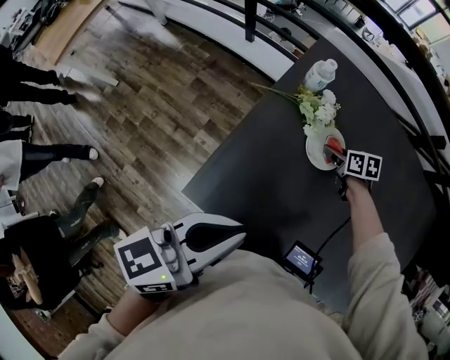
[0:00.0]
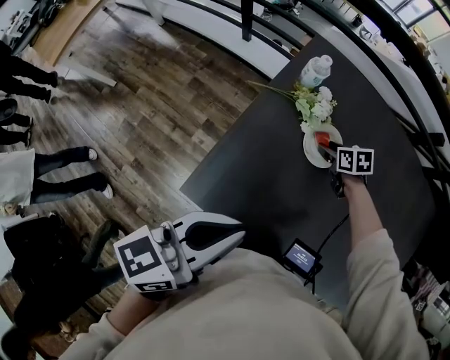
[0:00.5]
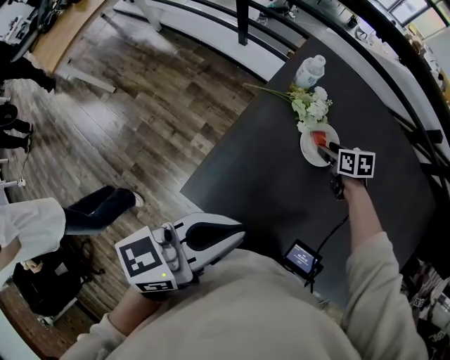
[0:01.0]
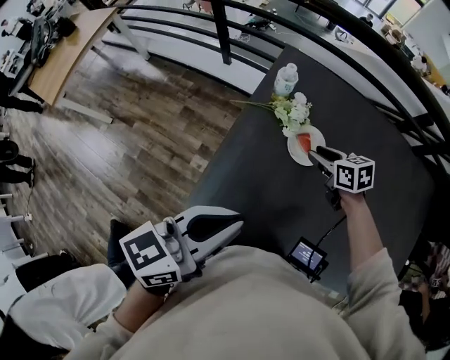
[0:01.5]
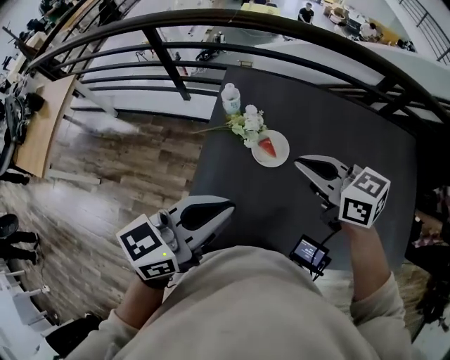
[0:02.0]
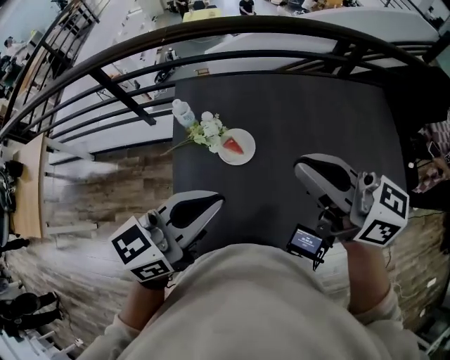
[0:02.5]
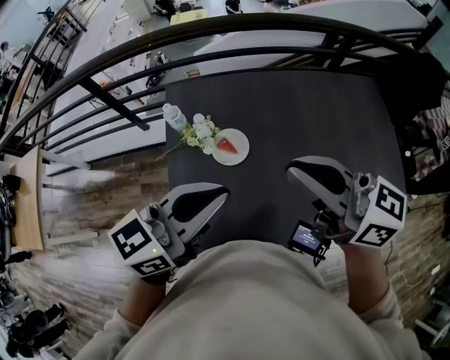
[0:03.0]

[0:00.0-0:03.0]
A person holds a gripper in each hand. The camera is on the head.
0:00.0 to 0:01.5: The right gripper is displaced upward by about 10 cm.
0:01.5 to 0:03.0: The right gripper moves upward, approximately 35 cm, points its fingers about 50 degrees further upward, and closes, while the left gripper shifts by some 15 cm, and rotates about 30 degrees.

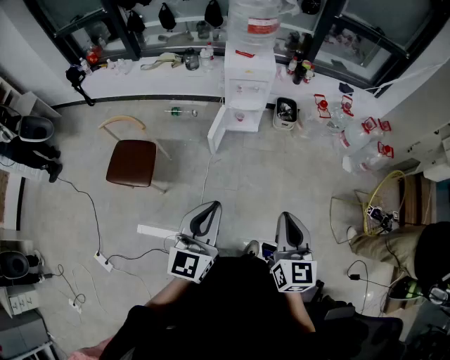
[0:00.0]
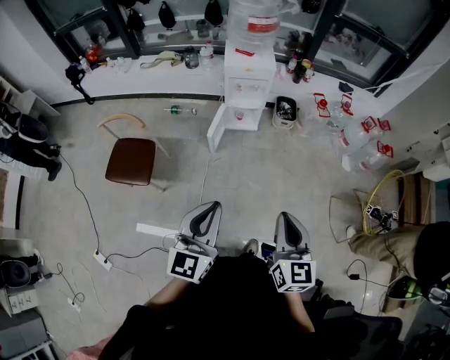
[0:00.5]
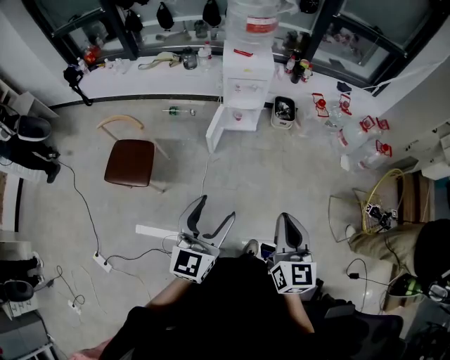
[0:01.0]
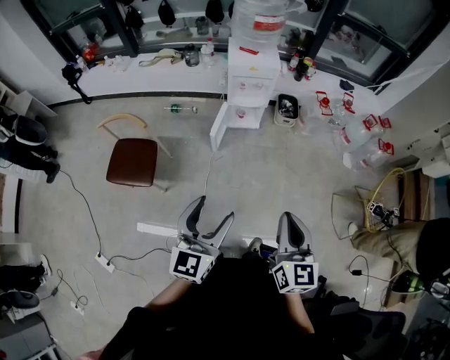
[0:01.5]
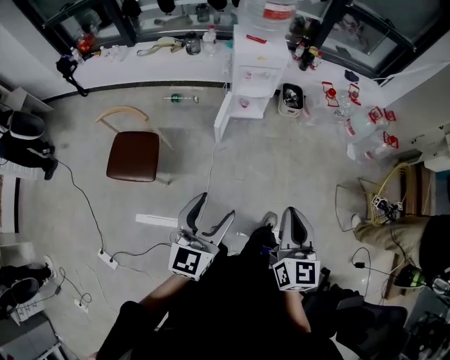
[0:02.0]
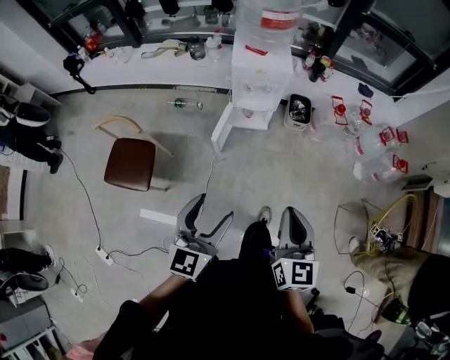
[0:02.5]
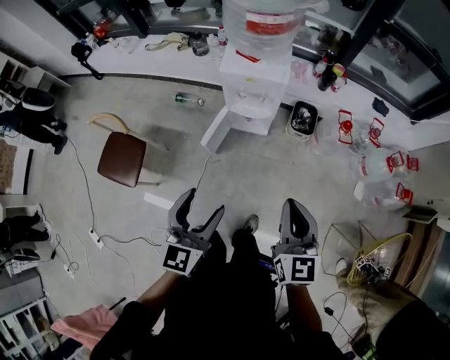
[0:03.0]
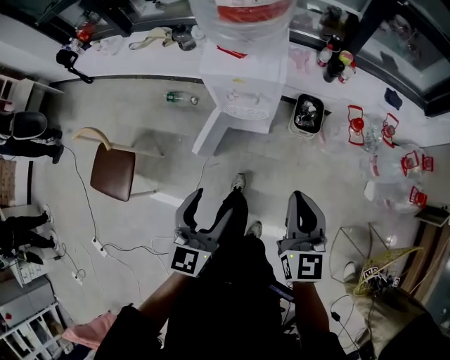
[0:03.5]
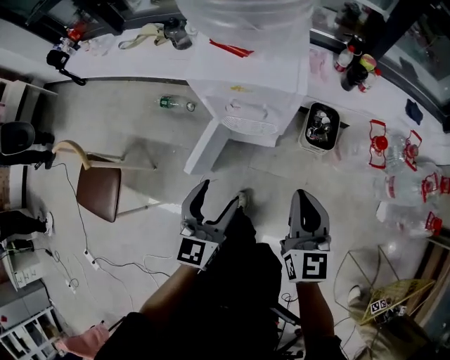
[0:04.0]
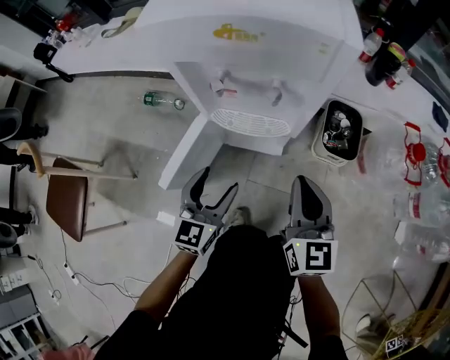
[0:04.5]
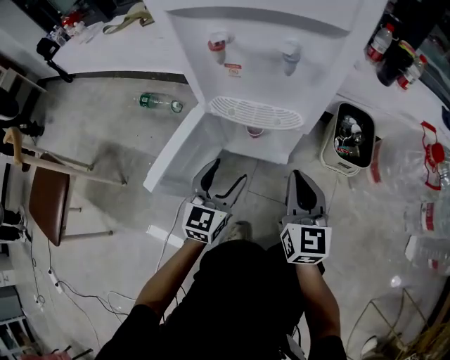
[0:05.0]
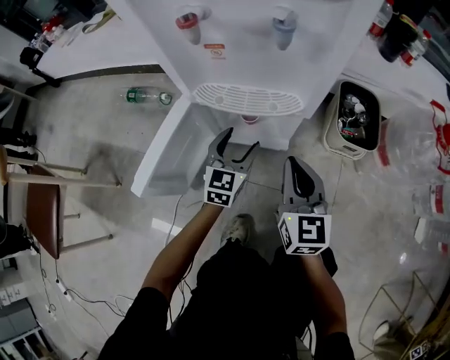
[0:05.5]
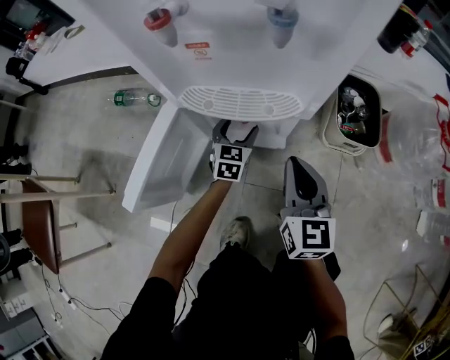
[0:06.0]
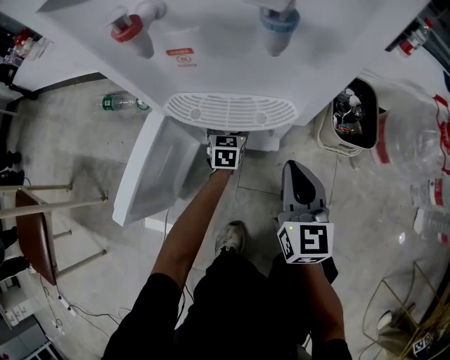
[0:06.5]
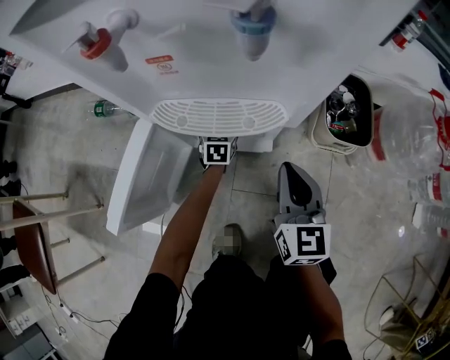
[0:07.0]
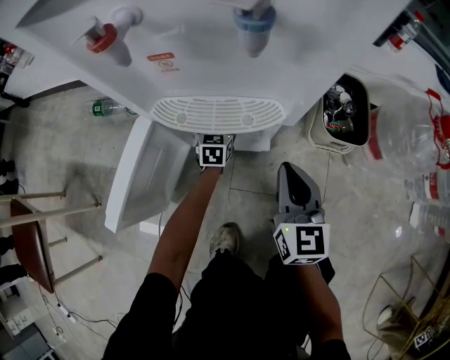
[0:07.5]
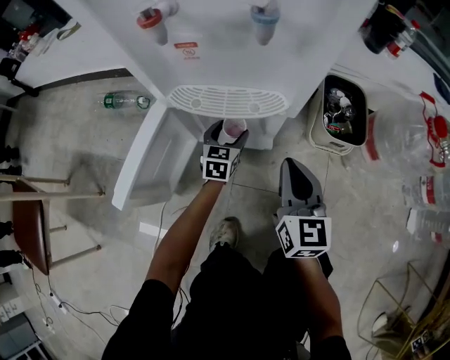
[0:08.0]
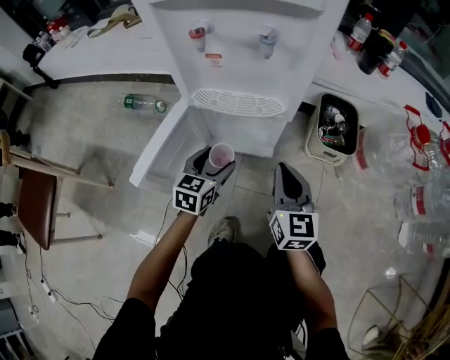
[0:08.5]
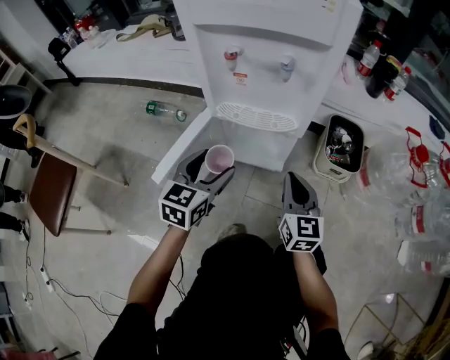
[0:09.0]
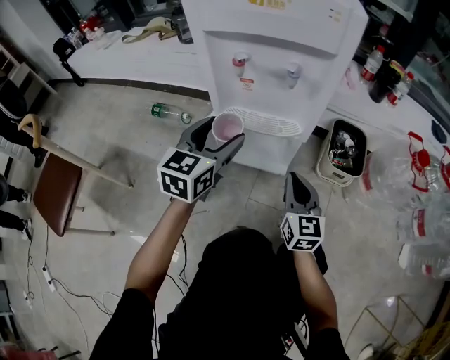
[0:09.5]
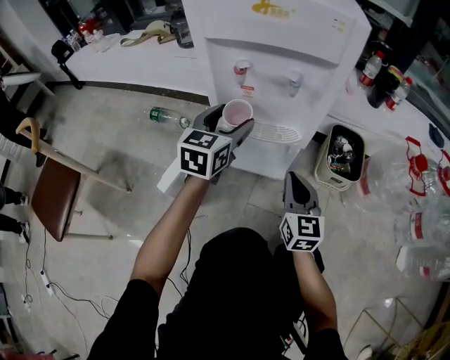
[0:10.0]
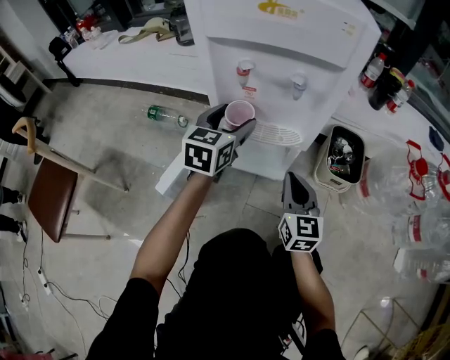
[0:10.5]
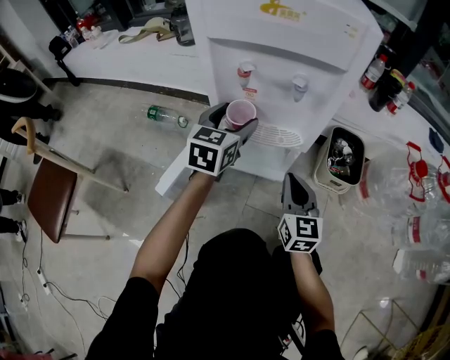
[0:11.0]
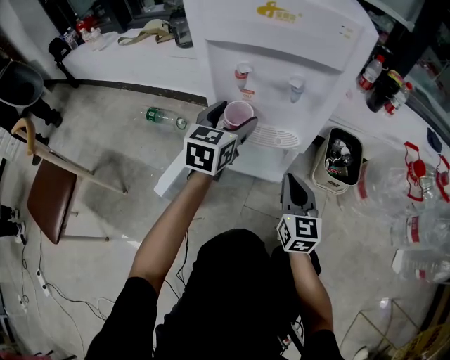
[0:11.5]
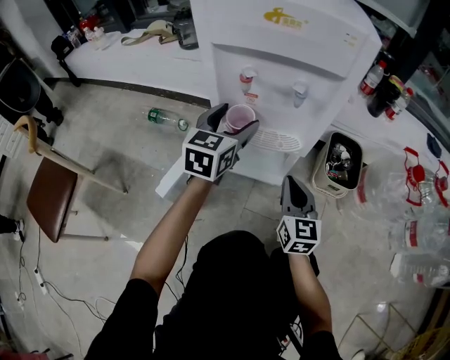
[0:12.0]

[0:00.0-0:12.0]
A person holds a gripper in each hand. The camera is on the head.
0:00.0 to 0:02.0: The left gripper heads to the left and downward, covering about 10 cm, and opens its fingers. Meanwhile the right gripper moves to the left, some 10 cm.
0:02.0 to 0:04.0: The two grippers travel together, forward, approximately 60 cm. The grippers both shift downward by approximately 30 cm.
0:04.0 to 0:06.0: The left gripper heads downward and forward, covering about 70 cm. The right gripper shifts roughly 50 cm downward.
0:06.0 to 0:08.0: The left gripper moves roughly 10 cm downward and comes back.
0:08.0 to 0:10.0: The right gripper goes roughly 5 cm upward; the left gripper is displaced upward by approximately 35 cm.
0:10.0 to 0:12.0: The grippers stay close to where they were, moving slightly.

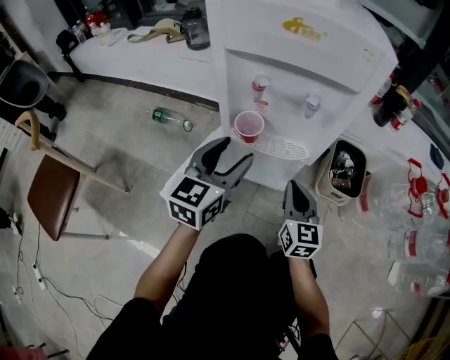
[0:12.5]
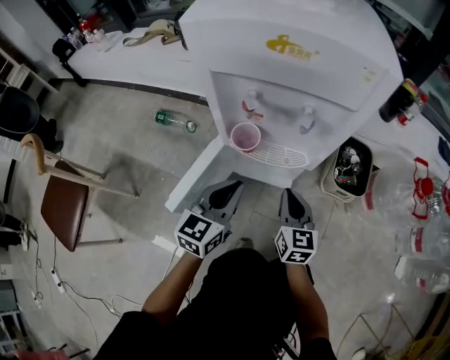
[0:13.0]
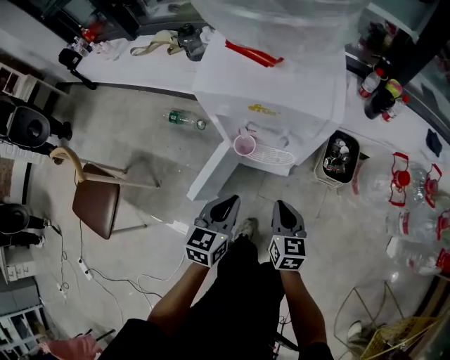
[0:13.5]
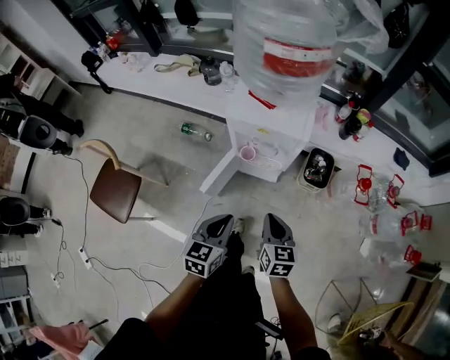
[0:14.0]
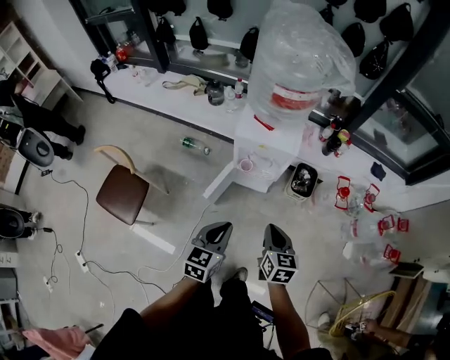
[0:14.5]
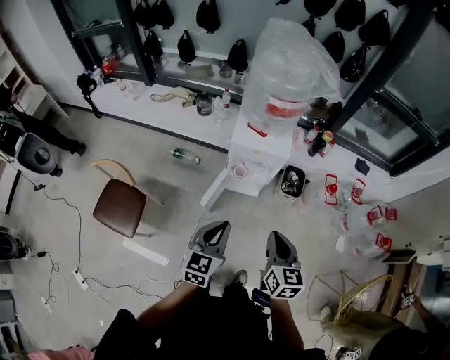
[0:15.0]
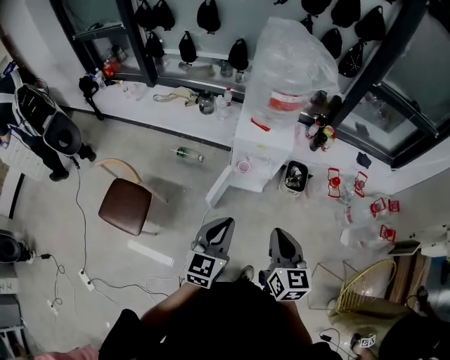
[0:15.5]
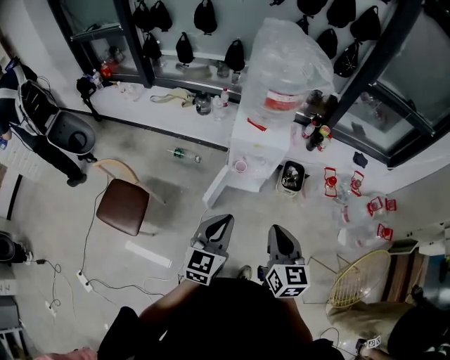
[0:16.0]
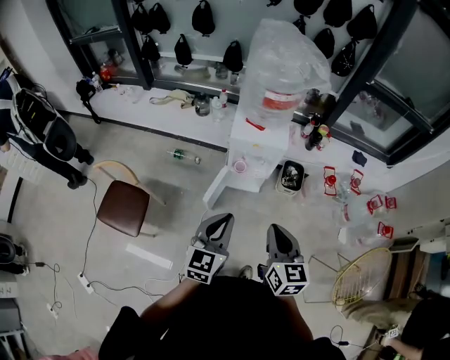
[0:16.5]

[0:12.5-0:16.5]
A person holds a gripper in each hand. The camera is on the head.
0:12.5 to 0:14.5: The two grippers go approximately 60 cm upward and backward. The right gripper swivels about 20 degrees, while the left gripper closes.
0:14.5 to 0:16.5: The left gripper moves upward, roughly 15 cm. The right gripper goes about 20 cm upward and backward.

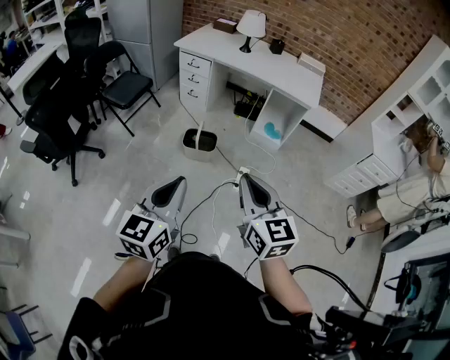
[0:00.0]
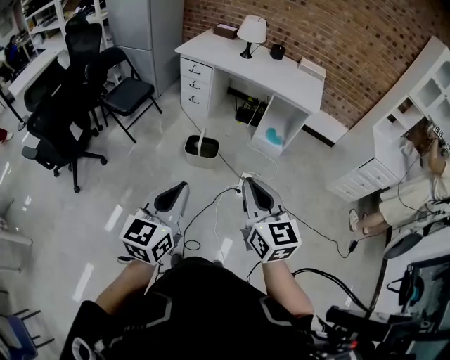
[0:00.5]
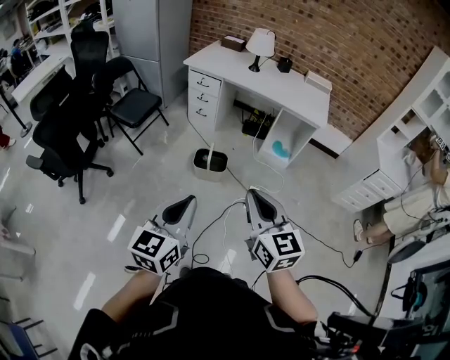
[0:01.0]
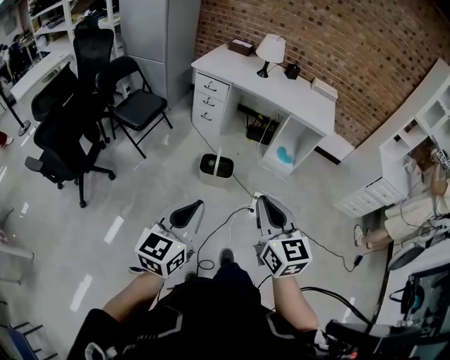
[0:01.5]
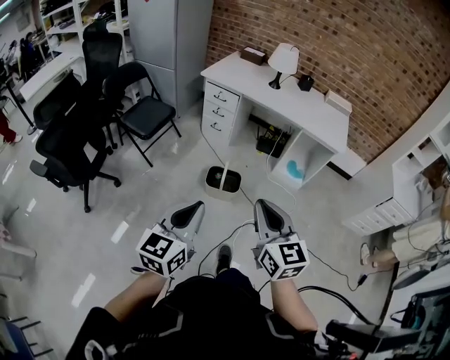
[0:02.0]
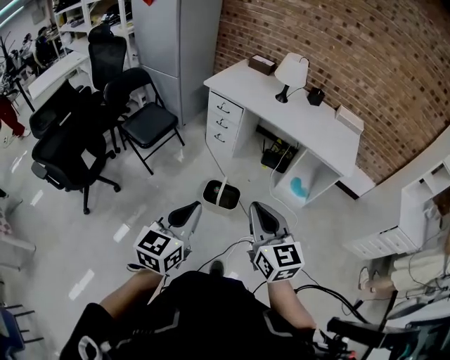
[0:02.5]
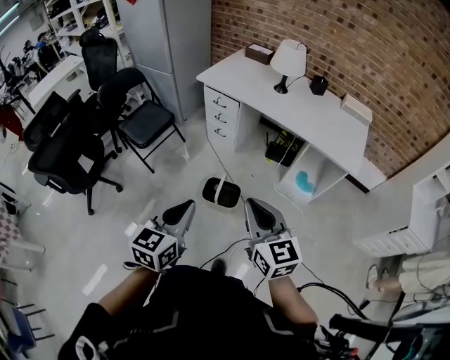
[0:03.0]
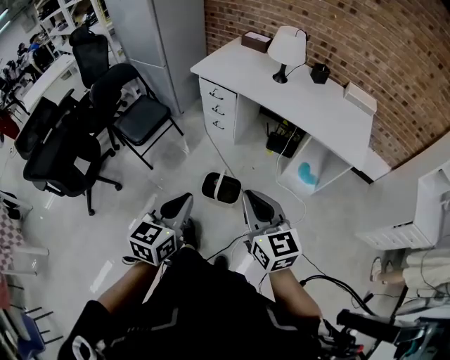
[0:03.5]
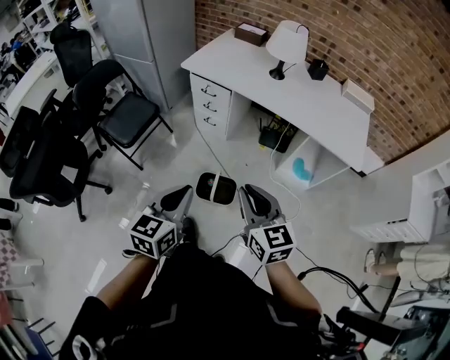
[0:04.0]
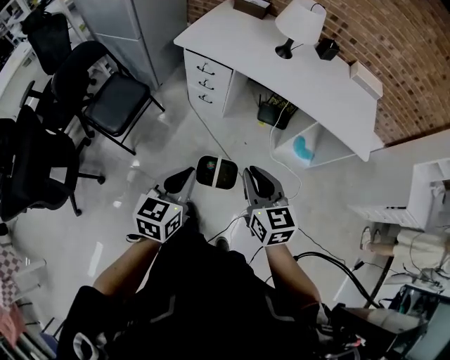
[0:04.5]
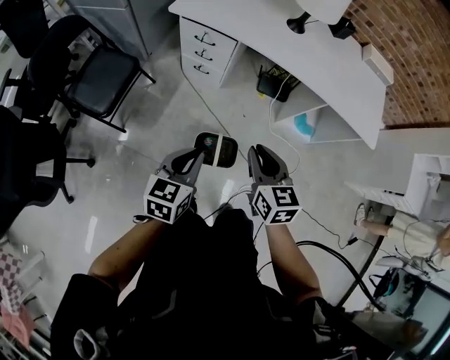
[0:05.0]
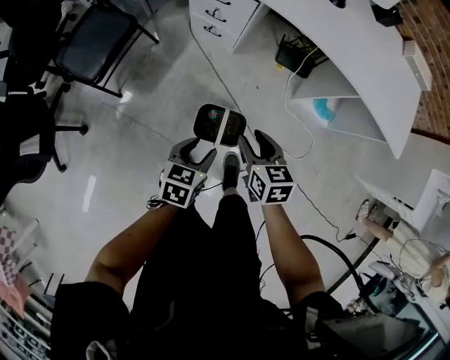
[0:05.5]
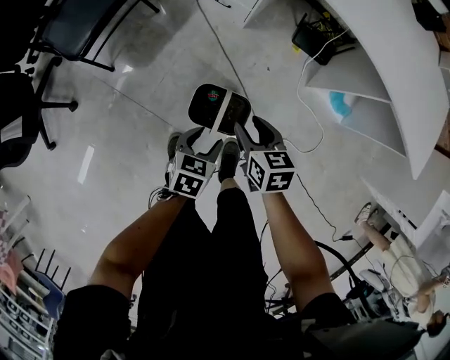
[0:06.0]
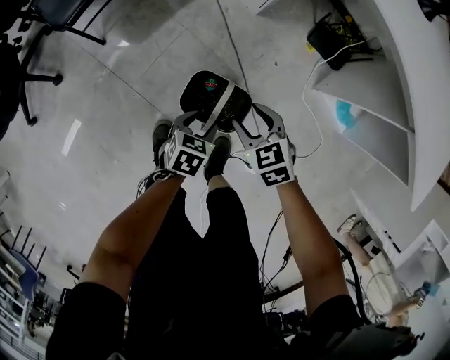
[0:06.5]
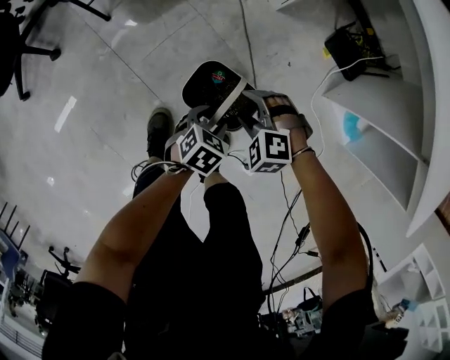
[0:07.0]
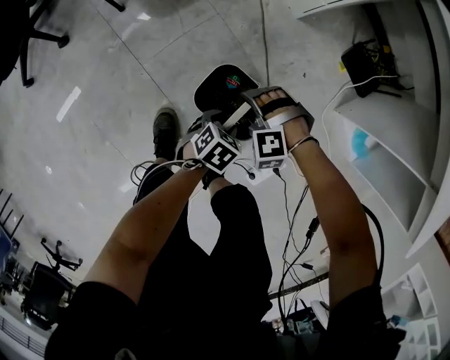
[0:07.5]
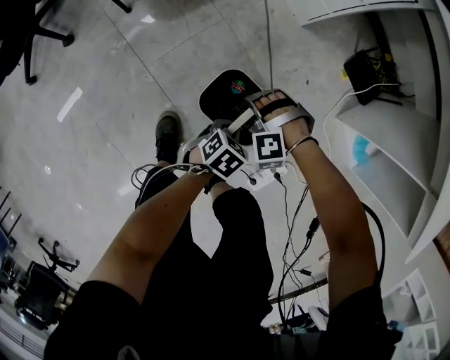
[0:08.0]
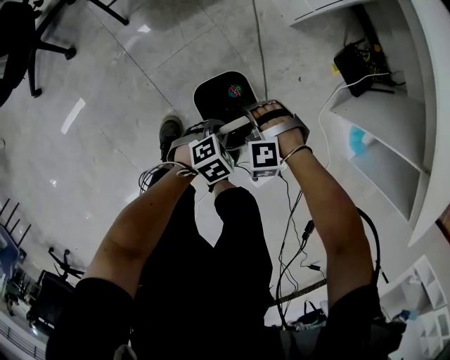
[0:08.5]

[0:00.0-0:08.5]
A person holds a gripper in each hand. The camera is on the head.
0:00.0 to 0:02.0: The two grippers go approximately 20 cm forward and to the left.
0:02.0 to 0:04.0: The two grippers go some 30 cm forward.
0:04.0 to 0:06.5: The right gripper is displaced downward and forward by some 60 cm, points its fingers roughly 40 degrees further downward, and opens its fingers, while the left gripper travels downward by approximately 60 cm, tips its fingers downward by about 40 degrees, and opens.
0:06.5 to 0:08.5: The right gripper is displaced downward by some 10 cm, twists approximately 80 degrees counterclockwise, seen from behind, and closes up; the left gripper is displaced downward by roughly 5 cm, turns by some 20 degrees, and closes up.
